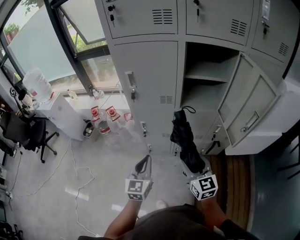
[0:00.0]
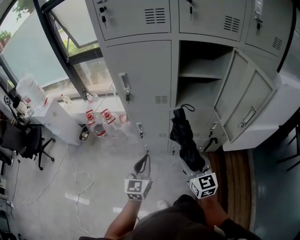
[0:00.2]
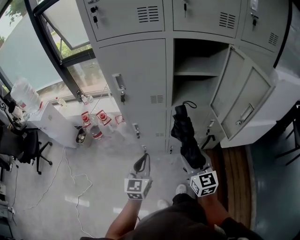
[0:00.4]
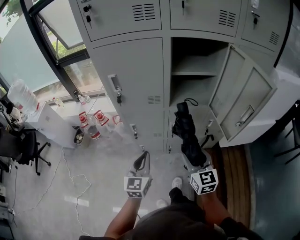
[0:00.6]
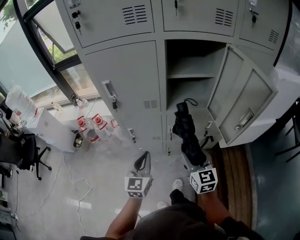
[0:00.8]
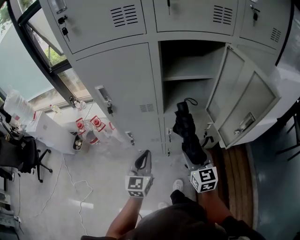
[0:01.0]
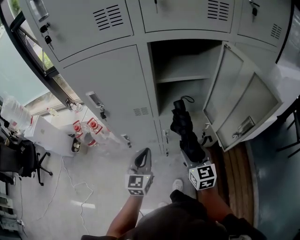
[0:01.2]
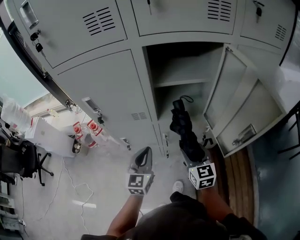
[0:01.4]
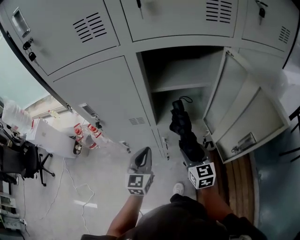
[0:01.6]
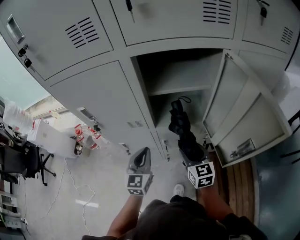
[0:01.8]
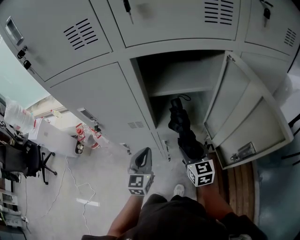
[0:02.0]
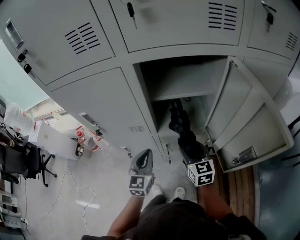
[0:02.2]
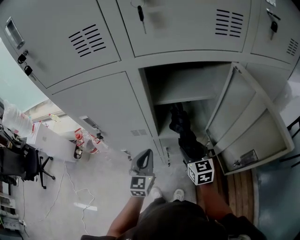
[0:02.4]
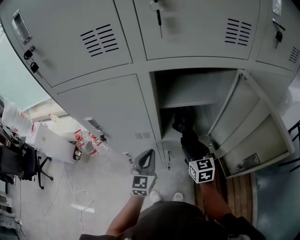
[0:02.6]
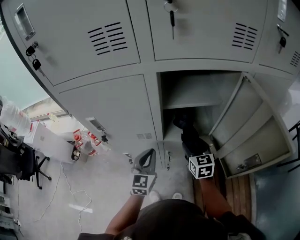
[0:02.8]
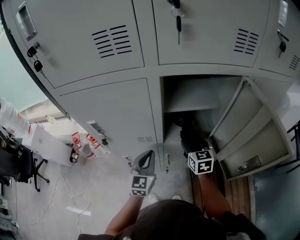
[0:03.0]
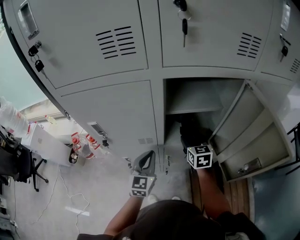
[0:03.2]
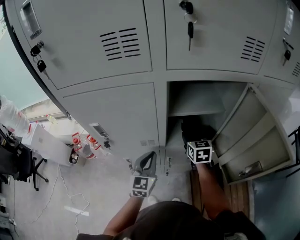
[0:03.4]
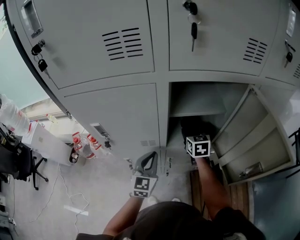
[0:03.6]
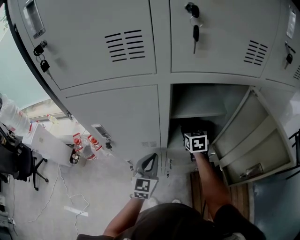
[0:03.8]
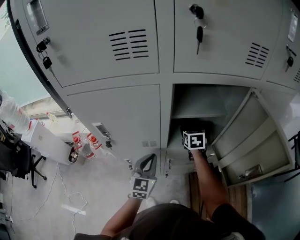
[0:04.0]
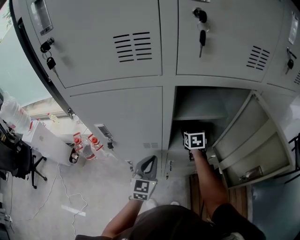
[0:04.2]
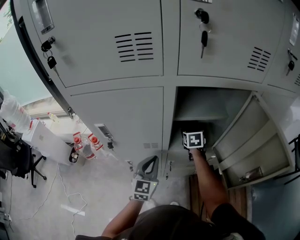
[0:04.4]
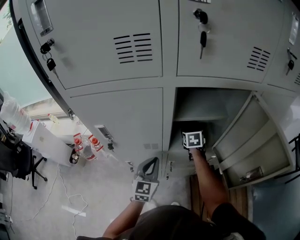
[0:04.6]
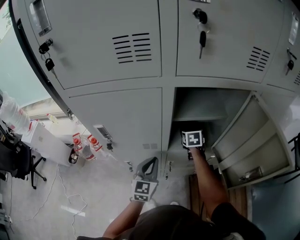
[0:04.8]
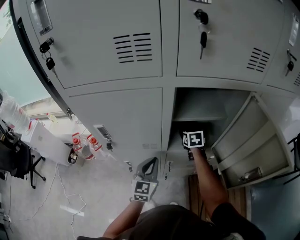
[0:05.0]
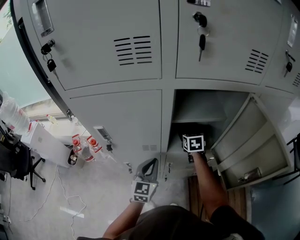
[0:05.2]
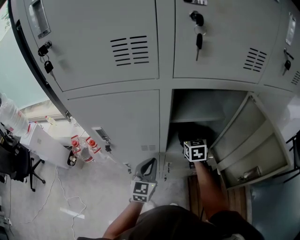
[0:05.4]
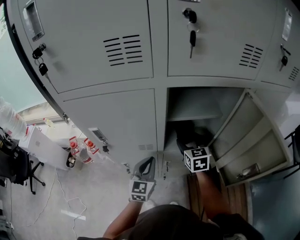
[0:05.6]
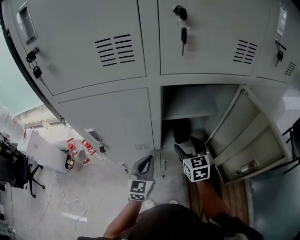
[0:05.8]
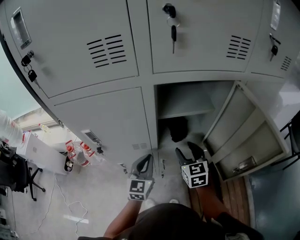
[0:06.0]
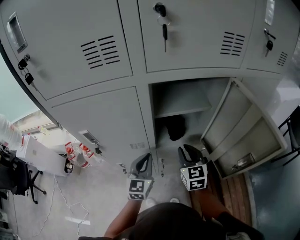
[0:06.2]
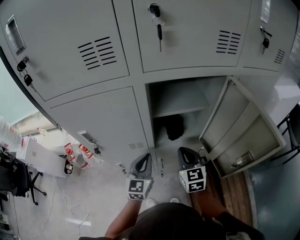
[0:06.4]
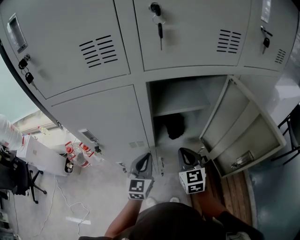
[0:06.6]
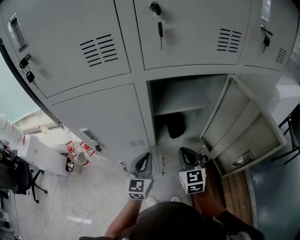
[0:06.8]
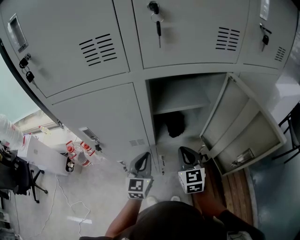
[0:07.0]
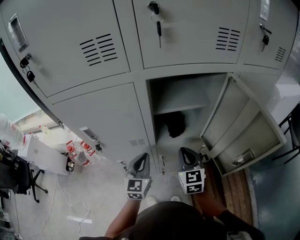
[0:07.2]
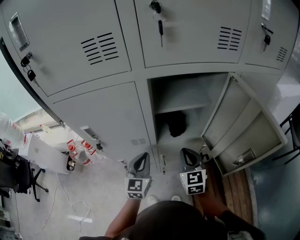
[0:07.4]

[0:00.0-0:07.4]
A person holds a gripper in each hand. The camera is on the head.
0:00.0 to 0:01.4: Both grippers move forward and to the right, about 20 cm.
0:01.4 to 0:03.0: The left gripper shifts about 10 cm forward, while the right gripper moves forward, about 15 cm.
0:03.0 to 0:04.4: The right gripper shifts roughly 10 cm forward.
0:04.4 to 0:06.0: The right gripper is displaced backward and upward by approximately 15 cm.
0:06.0 to 0:07.4: The right gripper closes.

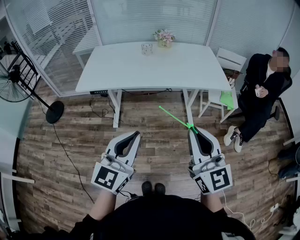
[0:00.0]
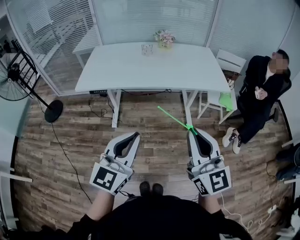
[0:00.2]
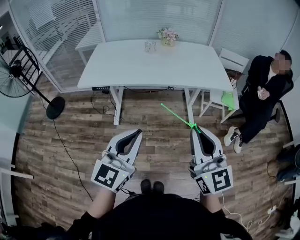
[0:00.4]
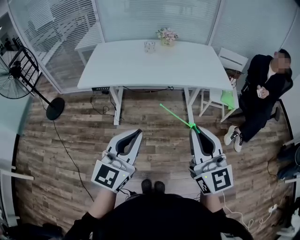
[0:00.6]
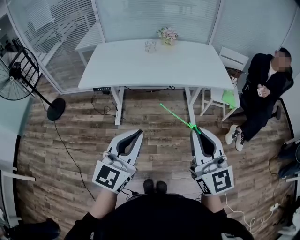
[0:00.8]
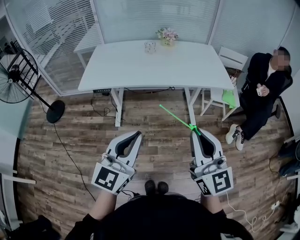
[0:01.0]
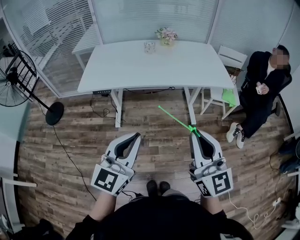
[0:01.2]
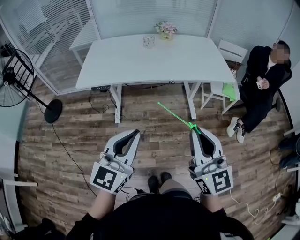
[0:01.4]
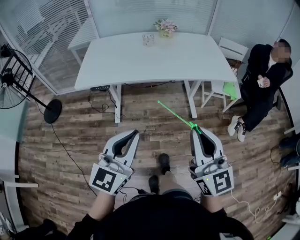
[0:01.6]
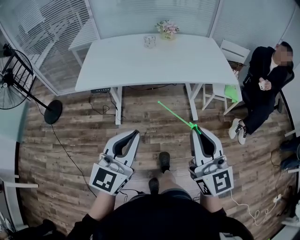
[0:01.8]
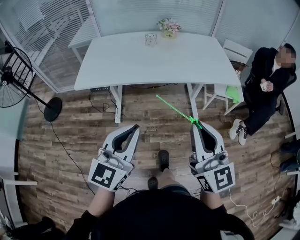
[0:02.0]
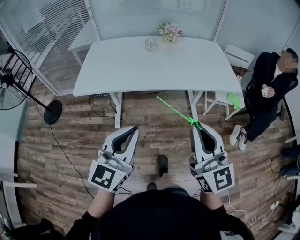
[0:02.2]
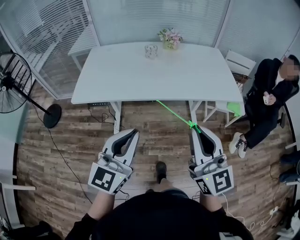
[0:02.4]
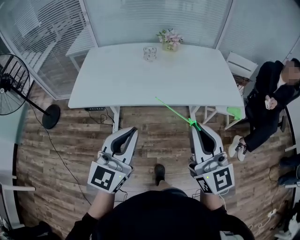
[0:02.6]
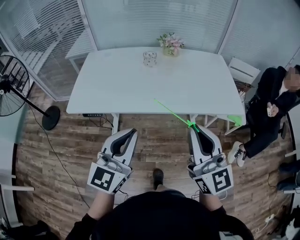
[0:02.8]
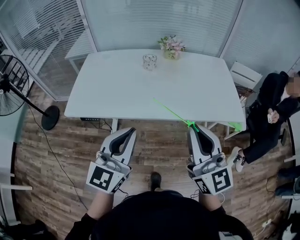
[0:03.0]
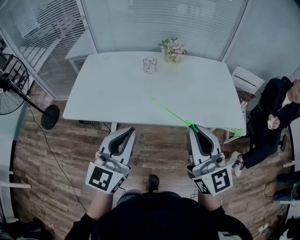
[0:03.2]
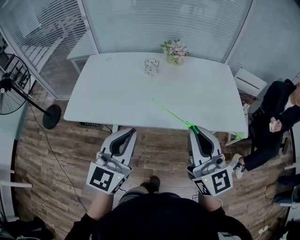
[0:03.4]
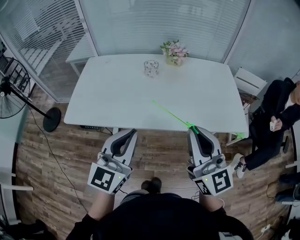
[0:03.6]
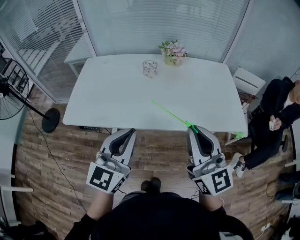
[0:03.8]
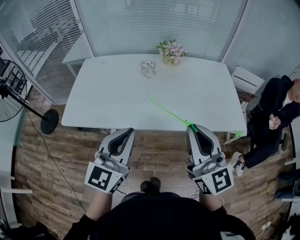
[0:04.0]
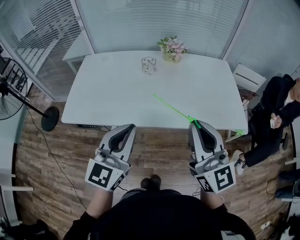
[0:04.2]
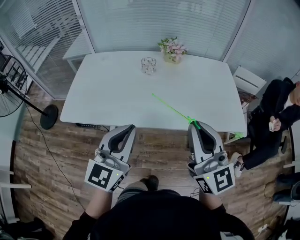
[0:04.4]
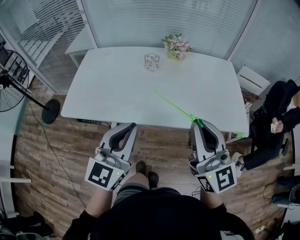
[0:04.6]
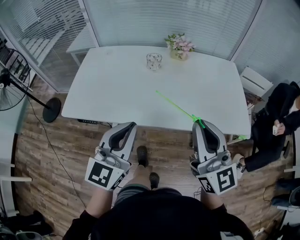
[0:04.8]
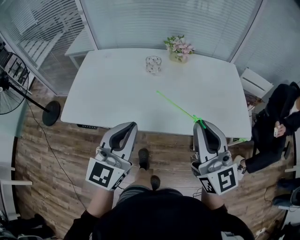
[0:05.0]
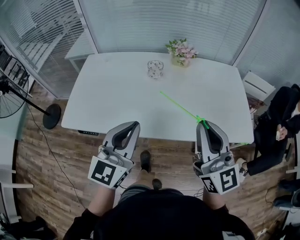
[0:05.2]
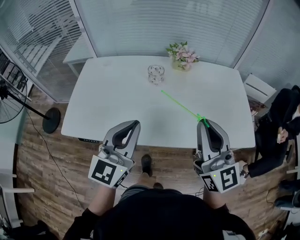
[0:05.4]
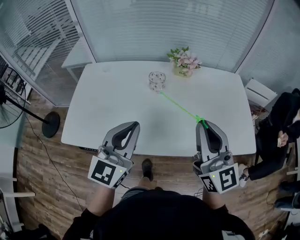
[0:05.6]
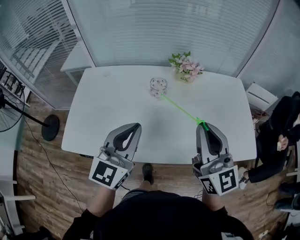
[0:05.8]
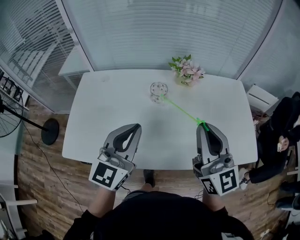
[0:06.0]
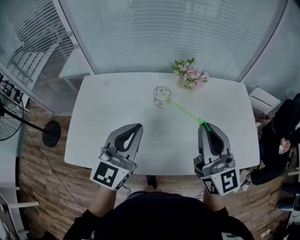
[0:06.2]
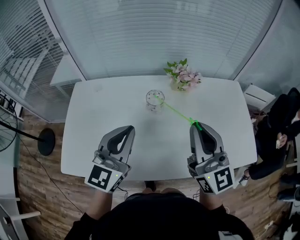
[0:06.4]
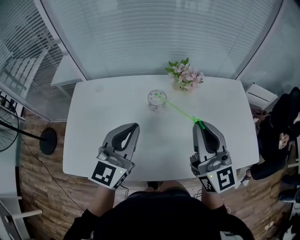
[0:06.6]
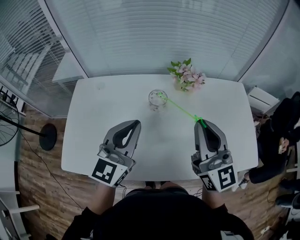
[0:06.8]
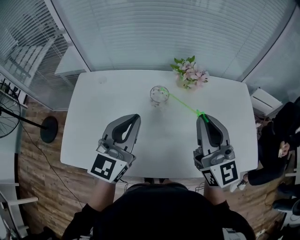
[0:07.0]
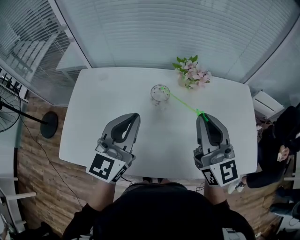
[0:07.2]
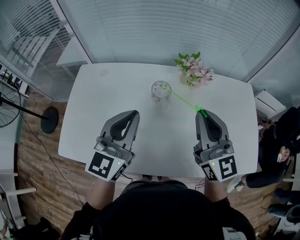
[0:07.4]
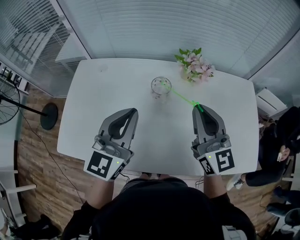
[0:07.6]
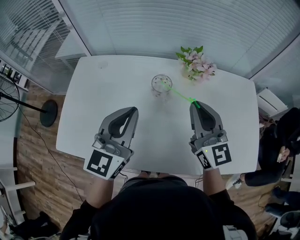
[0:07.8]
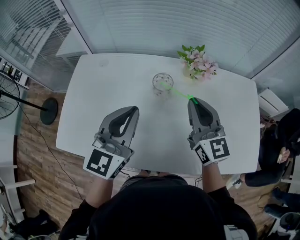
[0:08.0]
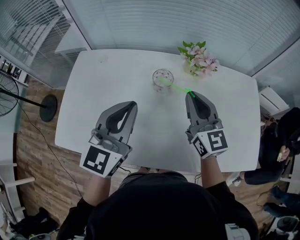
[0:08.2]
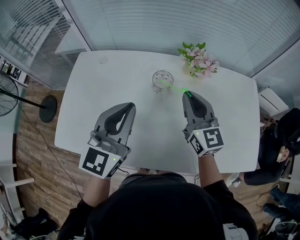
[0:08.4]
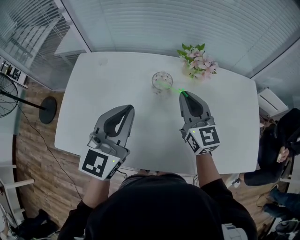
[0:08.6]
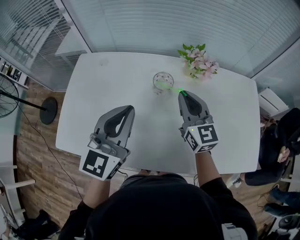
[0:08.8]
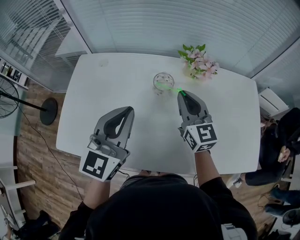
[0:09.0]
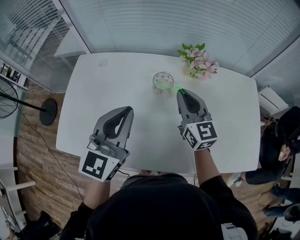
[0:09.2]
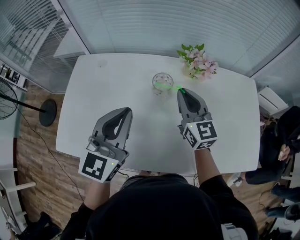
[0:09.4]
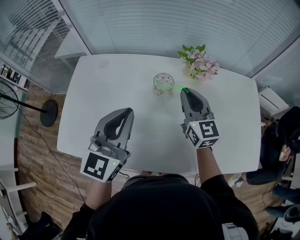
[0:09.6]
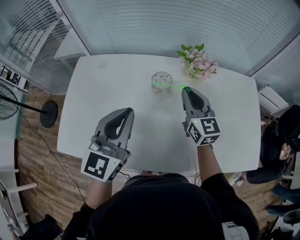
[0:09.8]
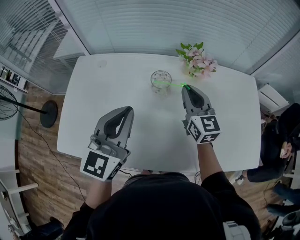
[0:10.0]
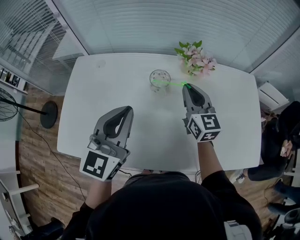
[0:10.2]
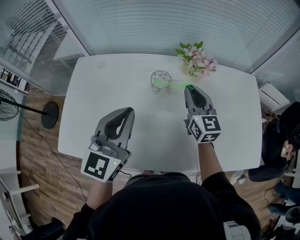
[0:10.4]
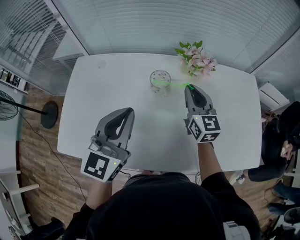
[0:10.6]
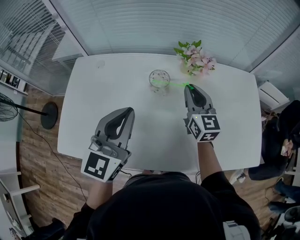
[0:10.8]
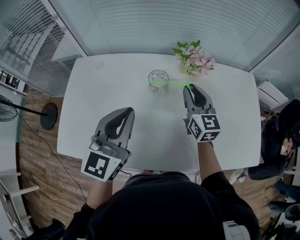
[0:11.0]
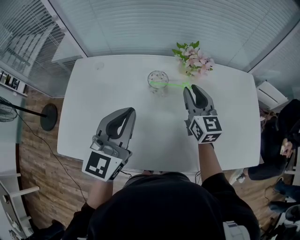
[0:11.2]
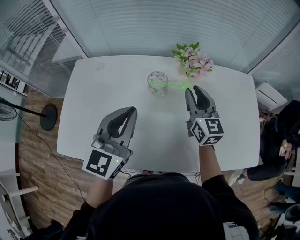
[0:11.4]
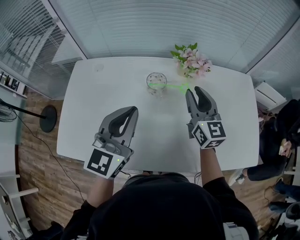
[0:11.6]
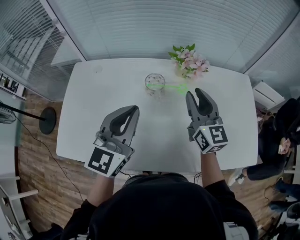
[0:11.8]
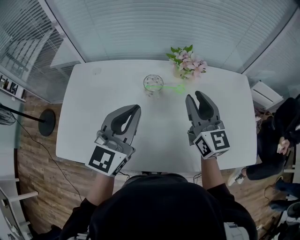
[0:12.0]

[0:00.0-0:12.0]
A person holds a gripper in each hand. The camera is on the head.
0:00.0 to 0:01.6: The grippers both shift to the left by approximately 5 cm.
0:01.6 to 0:03.0: The two grippers go about 25 cm forward.
0:03.0 to 0:04.4: Both grippers travel together forward, approximately 5 cm.
0:04.4 to 0:06.0: Both grippers move forward, approximately 20 cm.
0:06.0 to 0:07.6: The right gripper heads forward and downward, covering some 15 cm, while the left gripper goes some 10 cm forward.
0:07.6 to 0:09.0: The right gripper moves downward and forward, about 10 cm.
0:09.0 to 0:10.4: The right gripper ends up approximately 5 cm from where it was.
0:10.4 to 0:12.0: The right gripper moves upward and backward, approximately 10 cm.

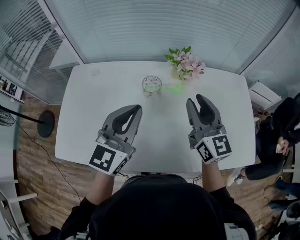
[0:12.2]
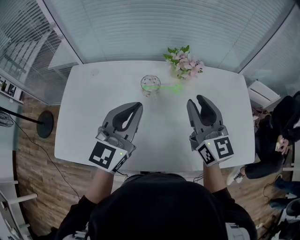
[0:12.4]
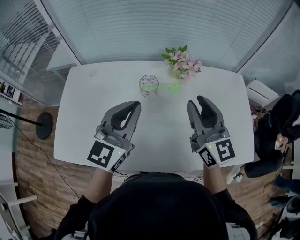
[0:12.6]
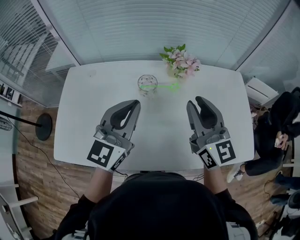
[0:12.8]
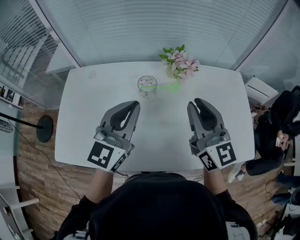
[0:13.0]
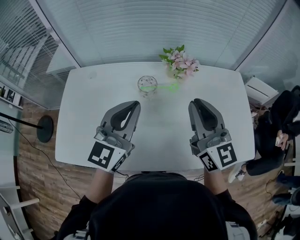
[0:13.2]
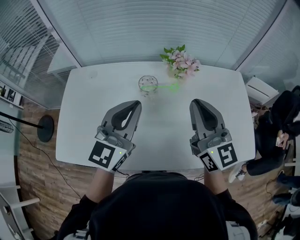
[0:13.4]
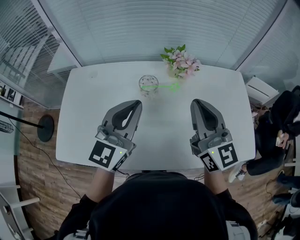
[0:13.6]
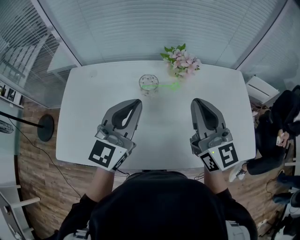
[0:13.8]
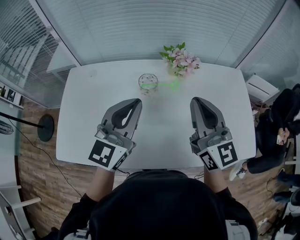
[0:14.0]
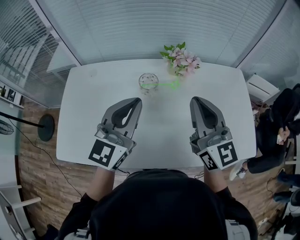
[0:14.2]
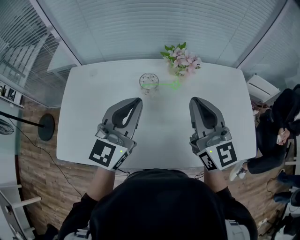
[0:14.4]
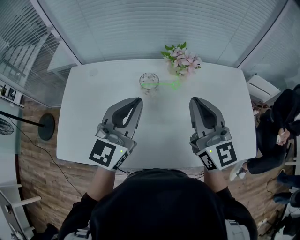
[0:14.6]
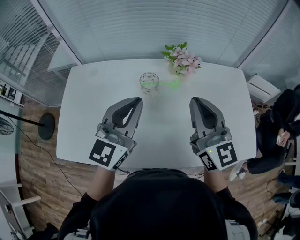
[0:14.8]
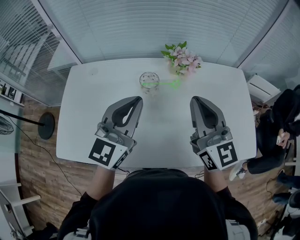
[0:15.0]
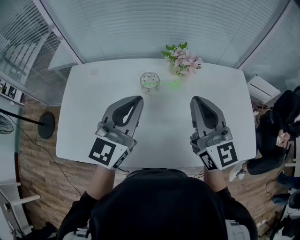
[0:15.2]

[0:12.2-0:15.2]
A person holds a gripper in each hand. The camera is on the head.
0:12.2 to 0:13.8: The right gripper changes place by approximately 5 cm, and closes up.
0:13.8 to 0:15.2: Neither gripper changes place.

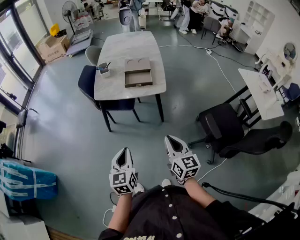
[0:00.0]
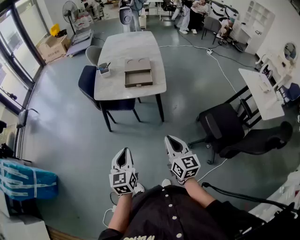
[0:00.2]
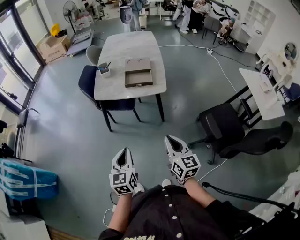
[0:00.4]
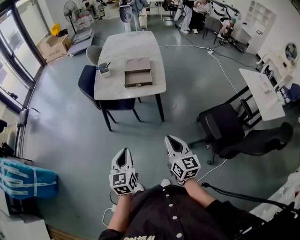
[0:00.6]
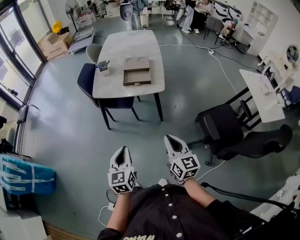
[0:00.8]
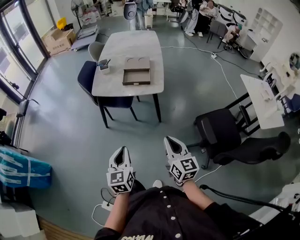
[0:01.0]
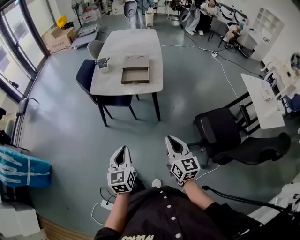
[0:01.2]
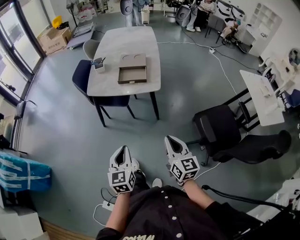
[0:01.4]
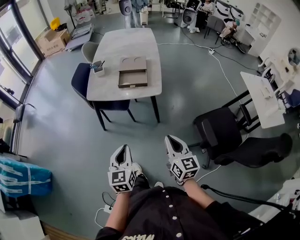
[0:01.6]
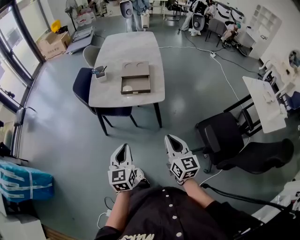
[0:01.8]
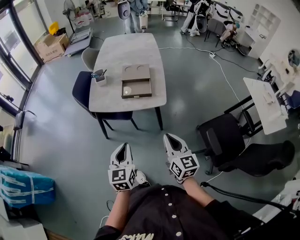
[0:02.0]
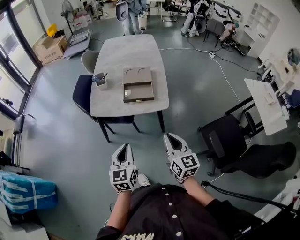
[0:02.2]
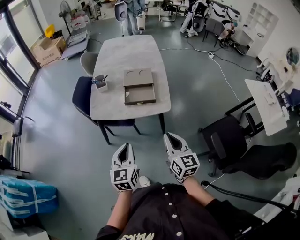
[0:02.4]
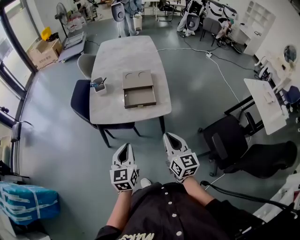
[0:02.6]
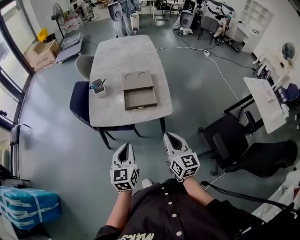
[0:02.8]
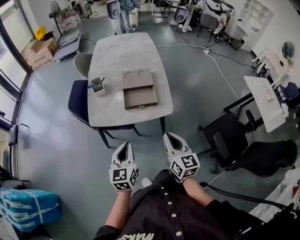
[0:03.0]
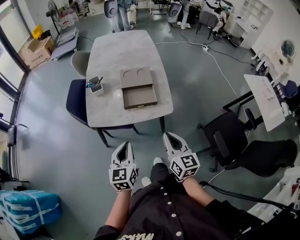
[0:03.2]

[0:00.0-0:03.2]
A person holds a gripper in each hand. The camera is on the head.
0:00.0 to 0:01.6: Both grippers travel together to the right, approximately 5 cm.
0:01.6 to 0:03.2: The left gripper moves forward, roughly 25 cm; the right gripper goes some 25 cm forward and to the left.
